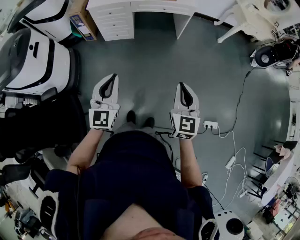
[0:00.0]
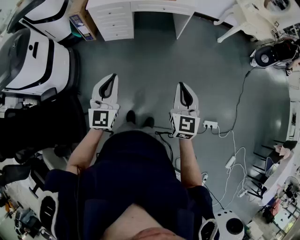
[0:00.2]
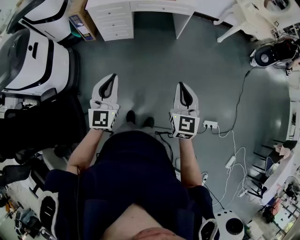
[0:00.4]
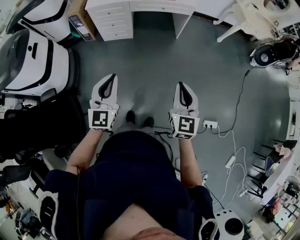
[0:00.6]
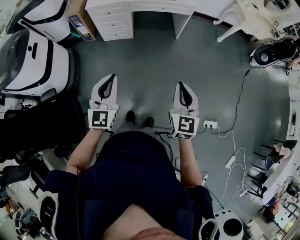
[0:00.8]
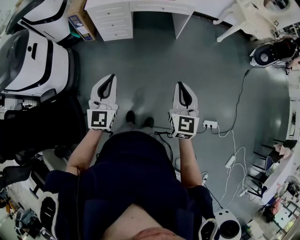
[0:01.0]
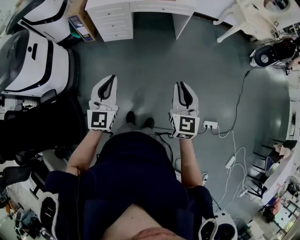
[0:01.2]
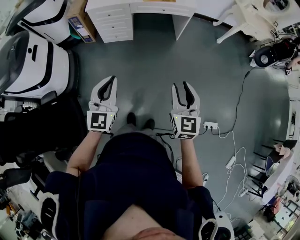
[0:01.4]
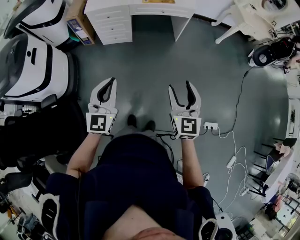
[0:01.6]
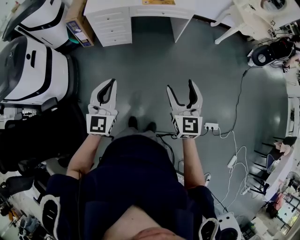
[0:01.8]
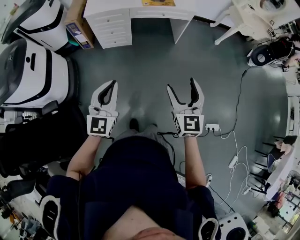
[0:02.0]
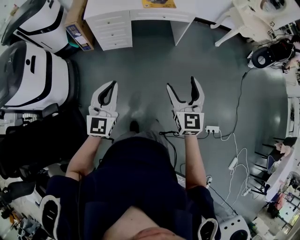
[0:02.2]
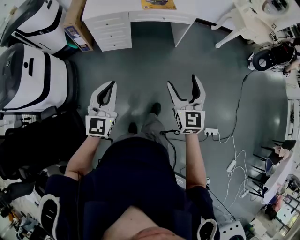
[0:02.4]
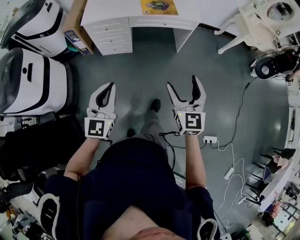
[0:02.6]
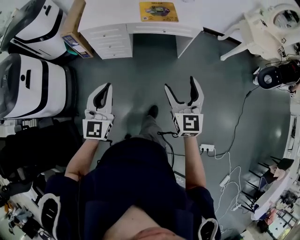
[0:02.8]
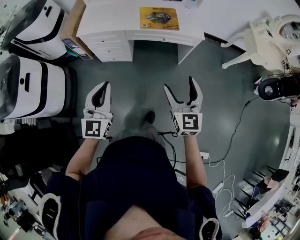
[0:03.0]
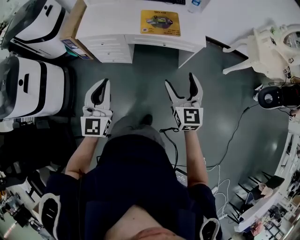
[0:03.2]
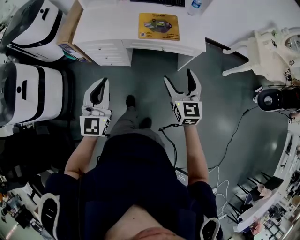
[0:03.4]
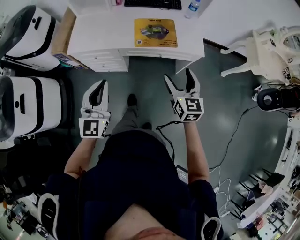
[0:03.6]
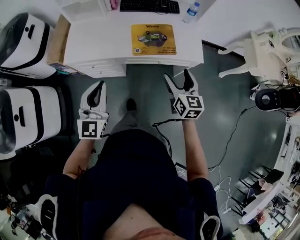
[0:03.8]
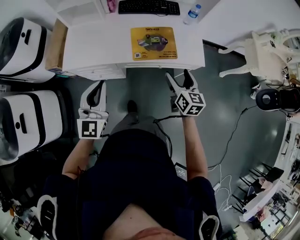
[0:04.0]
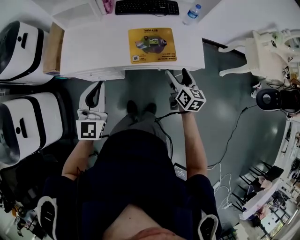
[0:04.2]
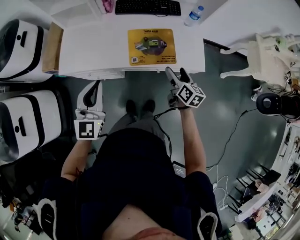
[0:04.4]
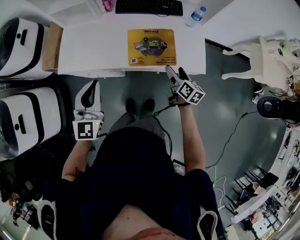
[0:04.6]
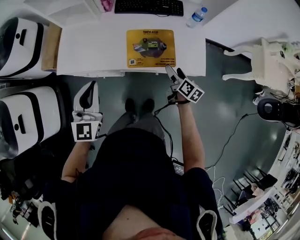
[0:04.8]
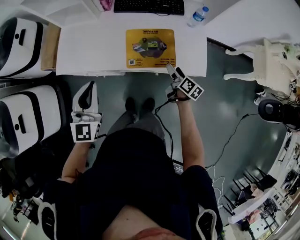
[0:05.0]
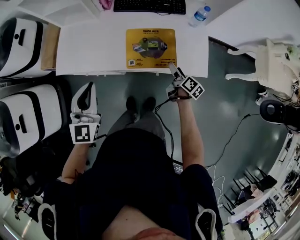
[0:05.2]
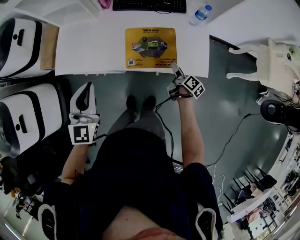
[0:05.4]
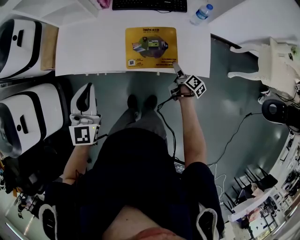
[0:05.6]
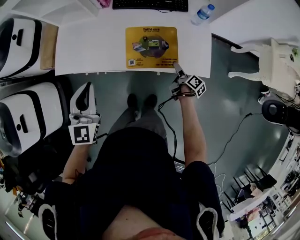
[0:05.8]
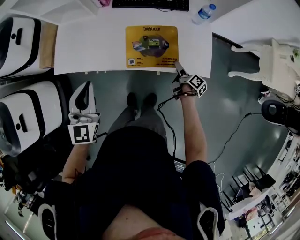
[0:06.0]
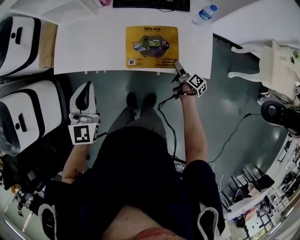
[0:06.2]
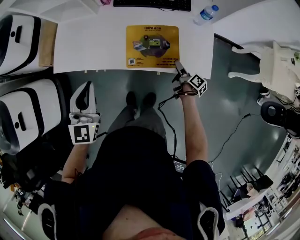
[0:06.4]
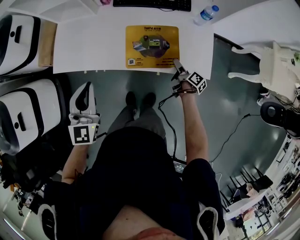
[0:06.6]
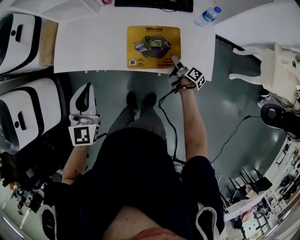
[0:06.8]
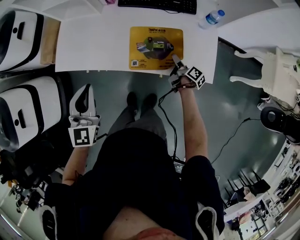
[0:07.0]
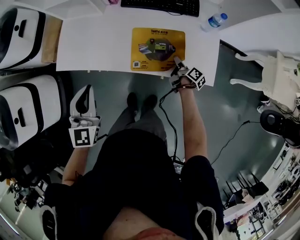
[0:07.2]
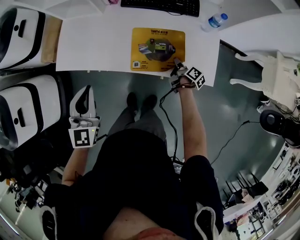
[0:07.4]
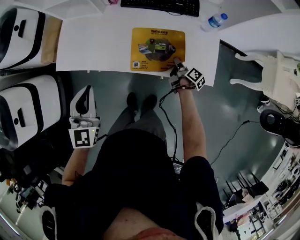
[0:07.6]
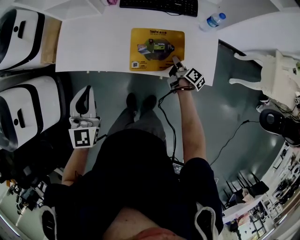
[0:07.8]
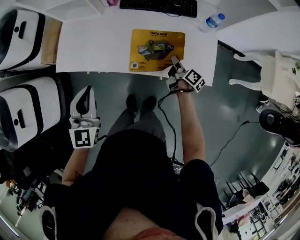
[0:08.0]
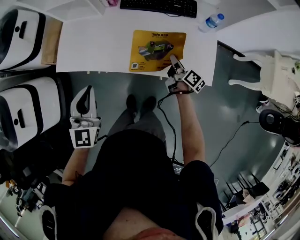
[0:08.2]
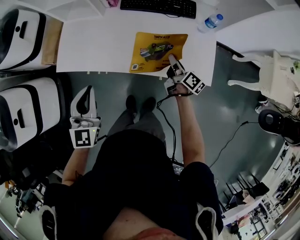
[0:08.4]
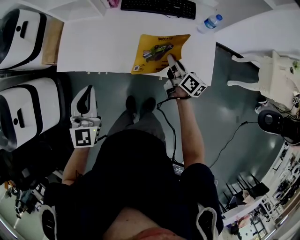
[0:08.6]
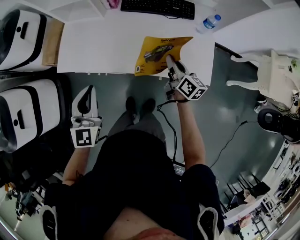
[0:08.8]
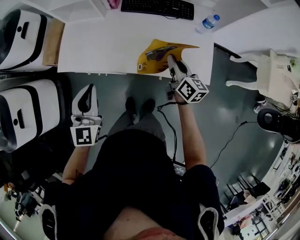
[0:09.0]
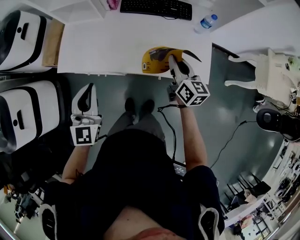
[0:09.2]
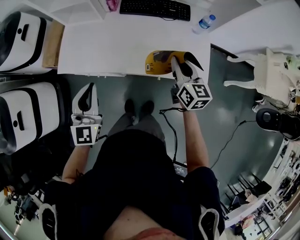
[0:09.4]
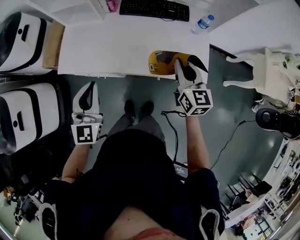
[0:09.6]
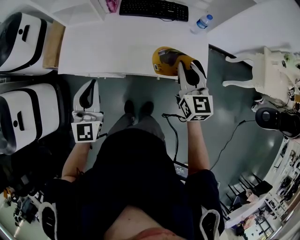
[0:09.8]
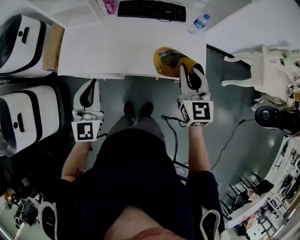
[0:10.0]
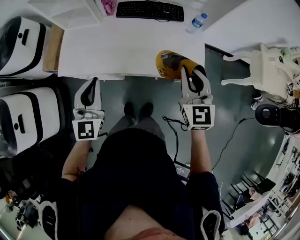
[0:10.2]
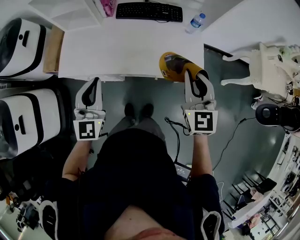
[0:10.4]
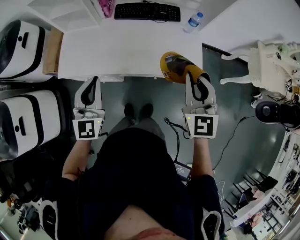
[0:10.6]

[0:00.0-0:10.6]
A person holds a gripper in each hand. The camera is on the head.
0:00.0 to 0:01.6: The right gripper opens up.
0:01.6 to 0:03.0: The two grippers go some 30 cm forward.
0:03.0 to 0:04.6: The right gripper shifts approximately 50 cm forward and downward, and rolls clockwise, seen from behind, by about 50 degrees, while the left gripper moves forward, some 35 cm.
0:04.6 to 0:06.0: The left gripper ends up approximately 5 cm from where it was. Meanwhile the right gripper is displaced downward by roughly 15 cm, and turns by about 40 degrees.
0:06.0 to 0:07.6: The right gripper moves forward, some 5 cm, and closes.
0:07.6 to 0:09.0: The right gripper heads upward, covering about 20 cm, and rotates around the line of its fingers by about 40 degrees, counterclockwise from behind.
0:09.0 to 0:10.6: The right gripper travels upward and backward by some 20 cm, and rolls counterclockwise, seen from behind, by roughly 50 degrees. The left gripper shifts by approximately 5 cm.

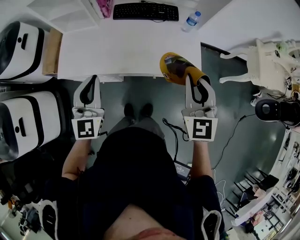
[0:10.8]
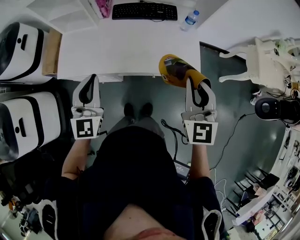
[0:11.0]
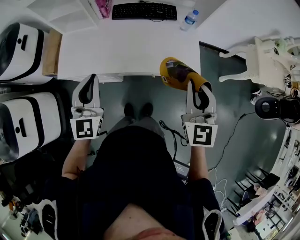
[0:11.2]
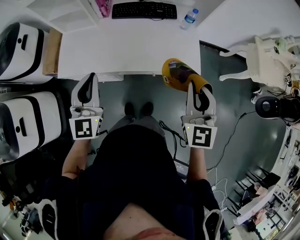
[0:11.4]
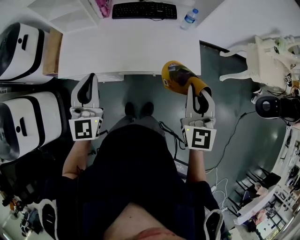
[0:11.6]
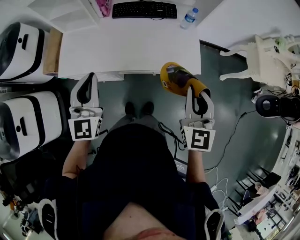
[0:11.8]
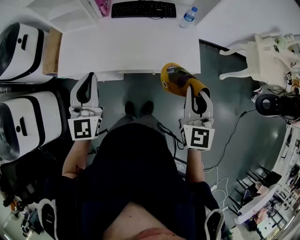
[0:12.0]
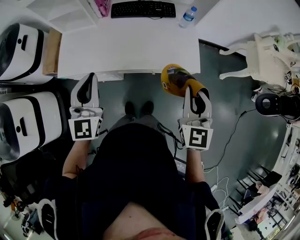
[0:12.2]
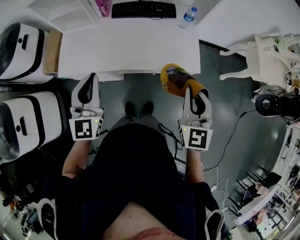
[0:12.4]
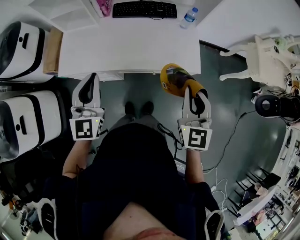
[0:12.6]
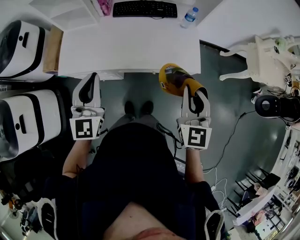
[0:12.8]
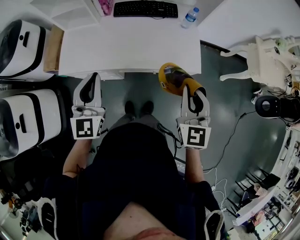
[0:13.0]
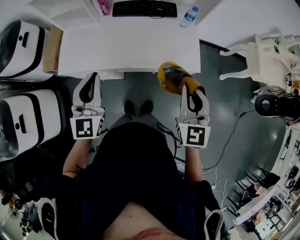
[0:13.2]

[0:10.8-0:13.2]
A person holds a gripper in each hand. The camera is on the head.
0:10.8 to 0:12.0: The right gripper goes approximately 5 cm backward.
0:12.0 to 0:13.2: The grippers move only a little.

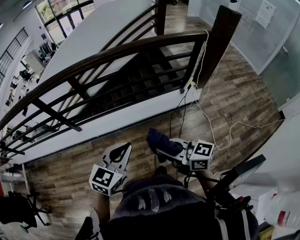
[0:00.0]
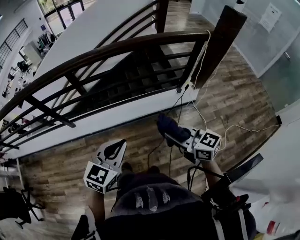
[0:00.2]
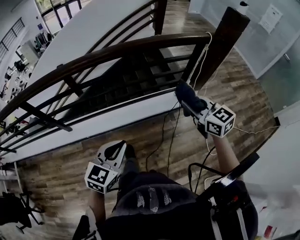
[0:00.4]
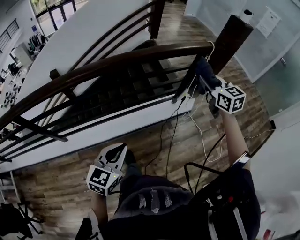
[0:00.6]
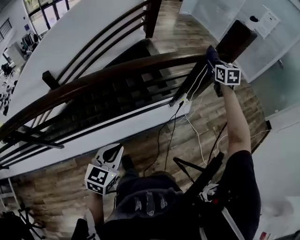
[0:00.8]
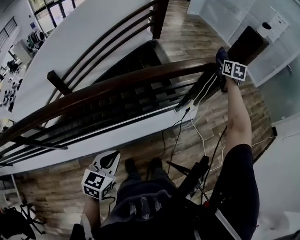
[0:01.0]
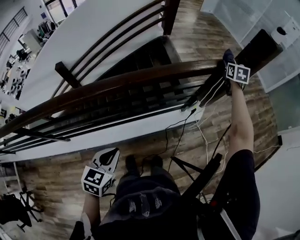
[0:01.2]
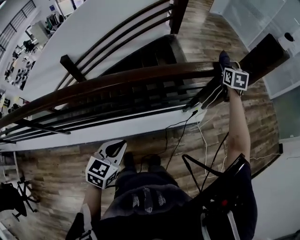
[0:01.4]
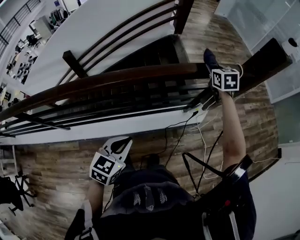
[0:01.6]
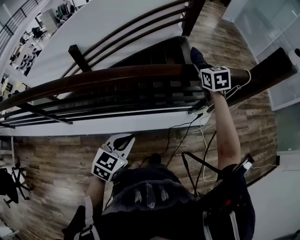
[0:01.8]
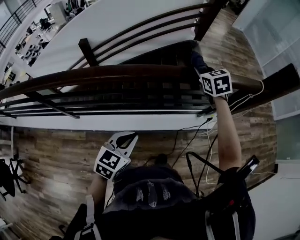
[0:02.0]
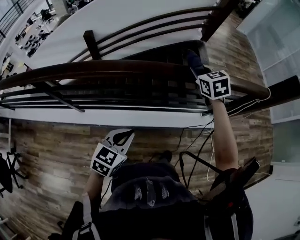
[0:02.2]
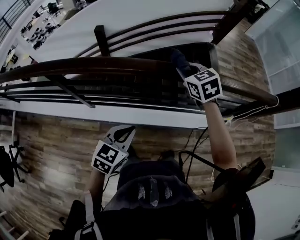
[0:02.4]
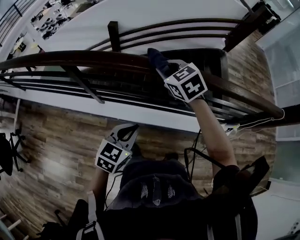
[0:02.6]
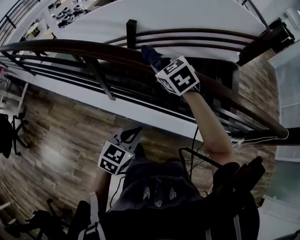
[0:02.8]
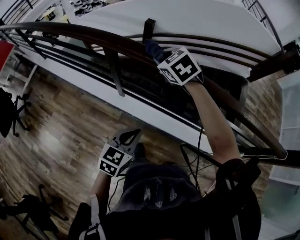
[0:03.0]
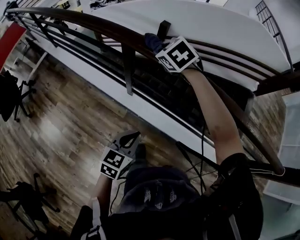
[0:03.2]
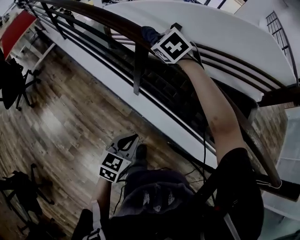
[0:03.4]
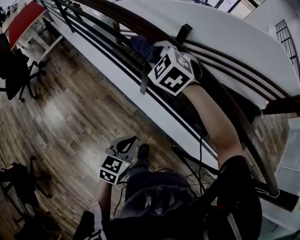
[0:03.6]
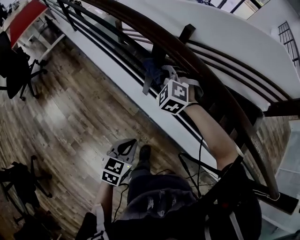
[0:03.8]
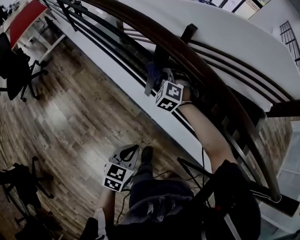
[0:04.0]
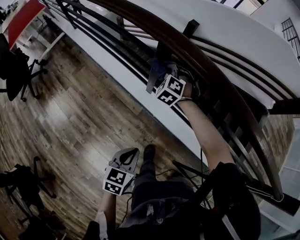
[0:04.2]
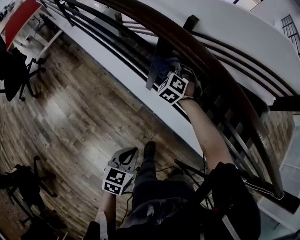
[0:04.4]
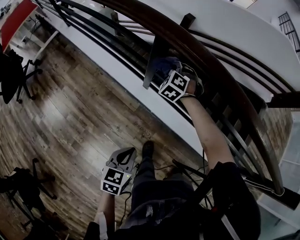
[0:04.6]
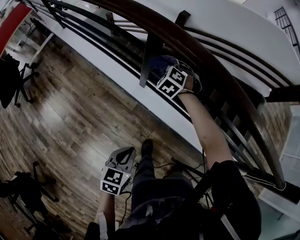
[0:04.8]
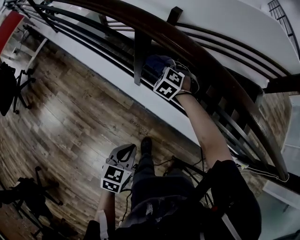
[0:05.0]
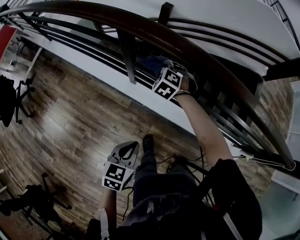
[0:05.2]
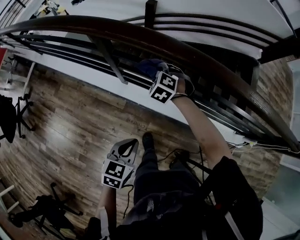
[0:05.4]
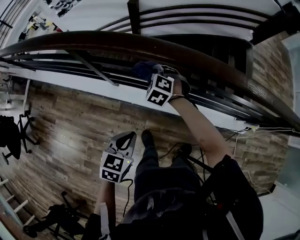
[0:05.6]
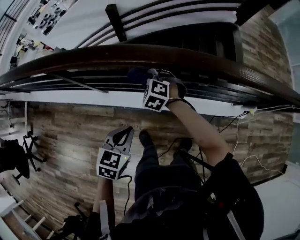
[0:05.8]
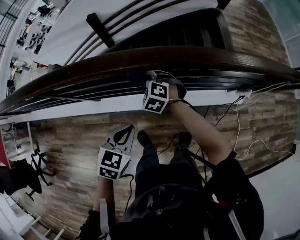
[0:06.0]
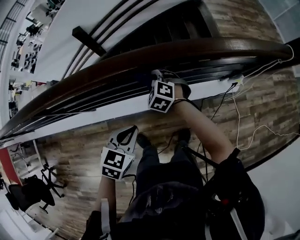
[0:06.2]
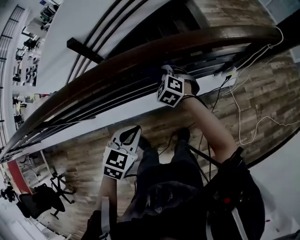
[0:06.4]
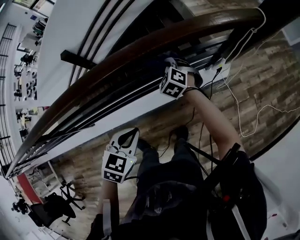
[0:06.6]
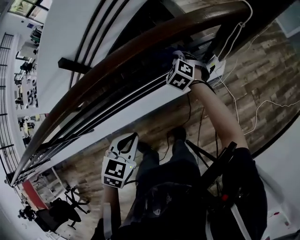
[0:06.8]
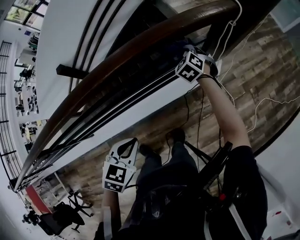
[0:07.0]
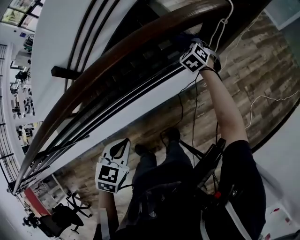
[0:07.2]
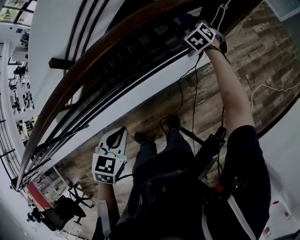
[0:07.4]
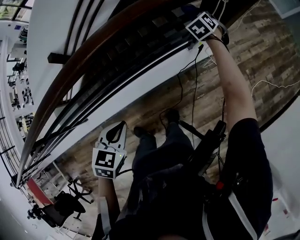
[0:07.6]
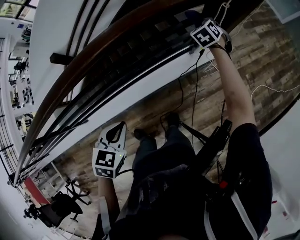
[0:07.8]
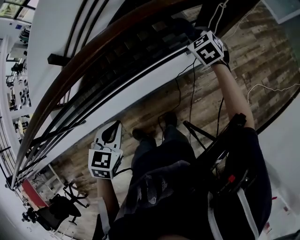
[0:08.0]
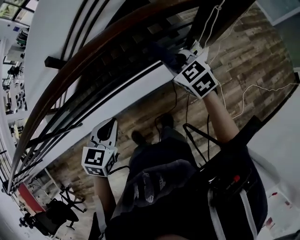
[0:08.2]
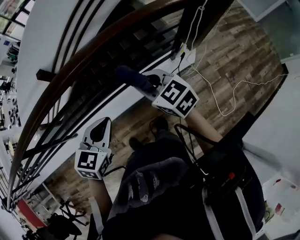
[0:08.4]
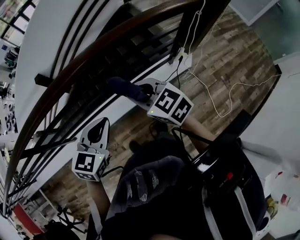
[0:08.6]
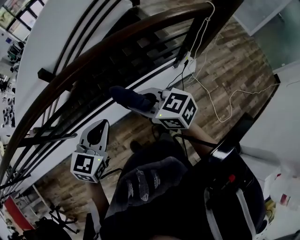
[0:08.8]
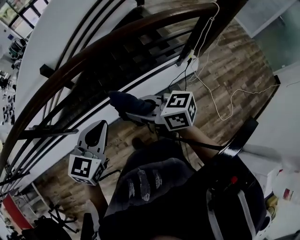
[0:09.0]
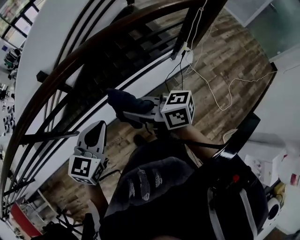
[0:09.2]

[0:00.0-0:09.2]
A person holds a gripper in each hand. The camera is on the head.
0:00.0 to 0:01.6: The left gripper changes place by roughly 40 cm. Meanwhile the right gripper travels upward and back again, some 5 cm each way, and rotates approximately 60 degrees.
0:01.6 to 0:03.0: The two grippers travel together, approximately 80 cm. The left gripper rotates approximately 30 degrees. Meanwhile the right gripper turns by approximately 70 degrees.
0:03.0 to 0:04.6: The left gripper is displaced to the left and downward by about 20 cm, and rotates approximately 30 degrees, while the right gripper shifts roughly 25 cm downward and to the left, and changes its angle by some 30 degrees.
0:04.6 to 0:06.2: The pair of grippers is taken roughly 50 cm. The right gripper rotates approximately 40 degrees. Meanwhile the left gripper rotates around the line of its fingers by about 50 degrees, clockwise from behind.
0:06.2 to 0:07.6: The left gripper ends up roughly 25 cm from where it was. The right gripper shifts by approximately 60 cm, and rotates some 50 degrees.
0:07.6 to 0:09.2: The right gripper changes place by some 70 cm, and angles its fingers upward, by about 40 degrees. Meanwhile the left gripper moves roughly 30 cm, and rotates some 30 degrees.

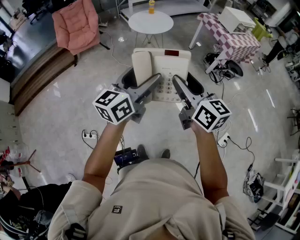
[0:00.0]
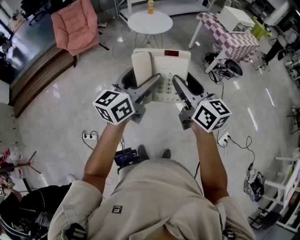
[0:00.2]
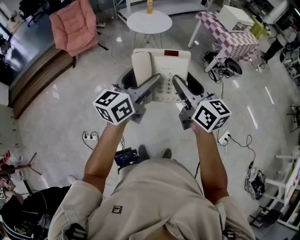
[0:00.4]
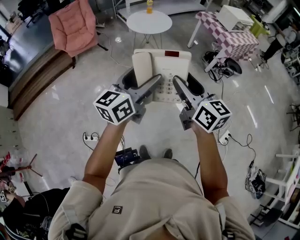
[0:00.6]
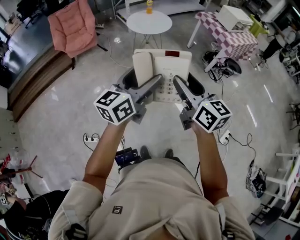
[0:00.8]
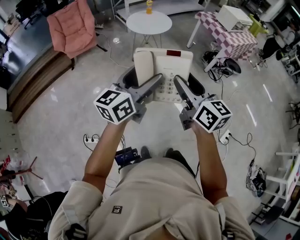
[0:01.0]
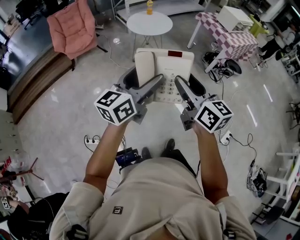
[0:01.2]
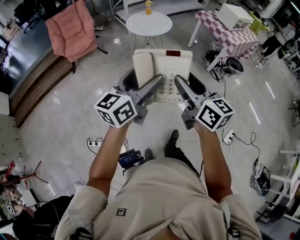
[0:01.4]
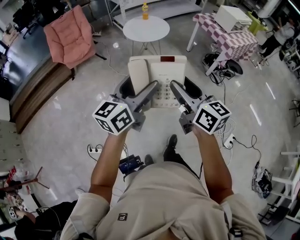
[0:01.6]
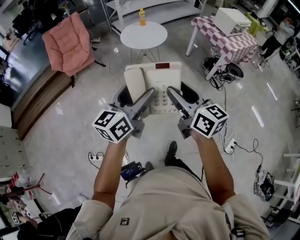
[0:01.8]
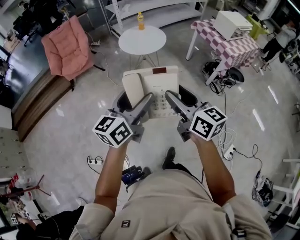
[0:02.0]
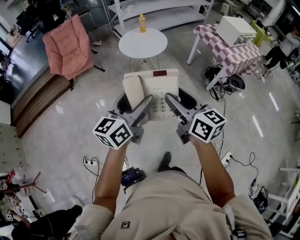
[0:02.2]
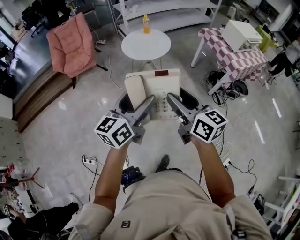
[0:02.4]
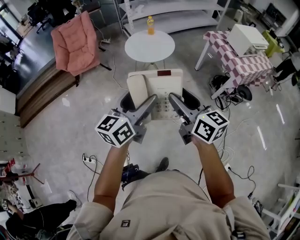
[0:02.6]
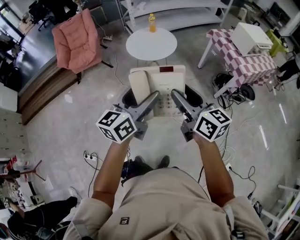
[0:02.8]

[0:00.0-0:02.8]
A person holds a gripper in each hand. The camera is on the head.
0:00.0 to 0:01.4: The right gripper ends up roughly 5 cm from where it was. The left gripper shifts by approximately 5 cm.
0:01.4 to 0:02.8: The grippers both shift forward and to the right by approximately 30 cm.
